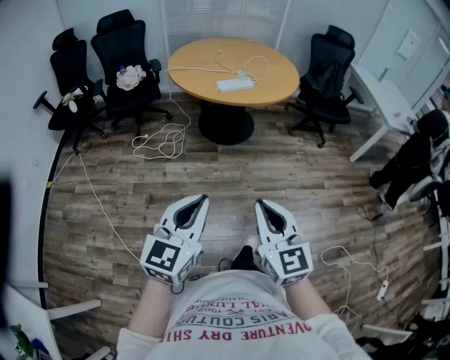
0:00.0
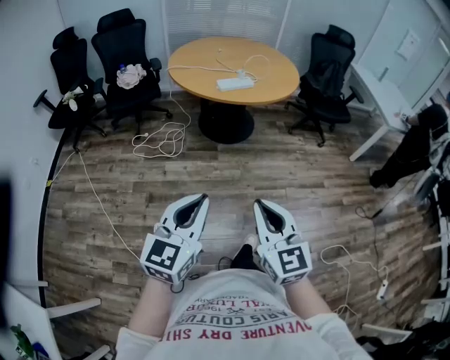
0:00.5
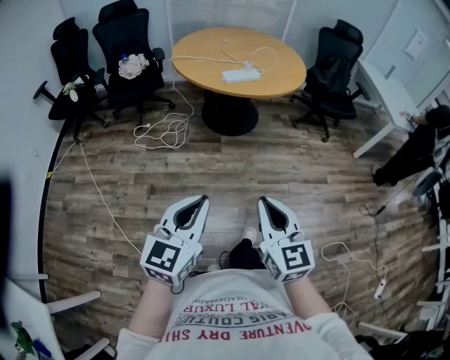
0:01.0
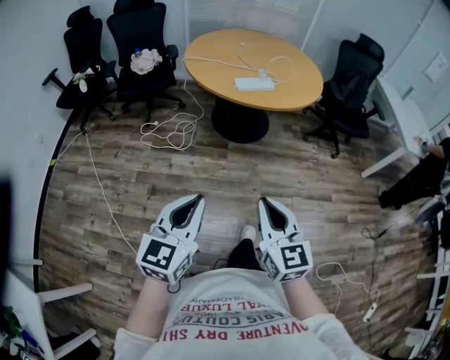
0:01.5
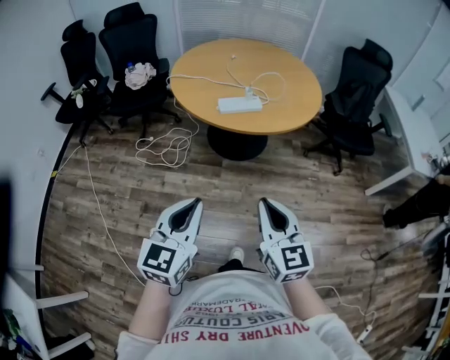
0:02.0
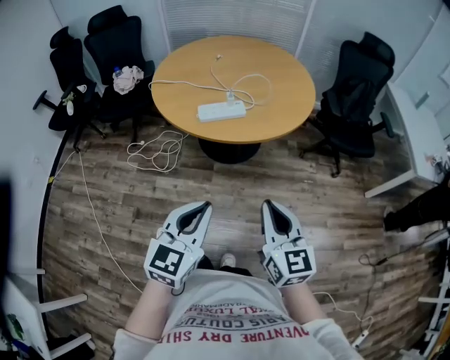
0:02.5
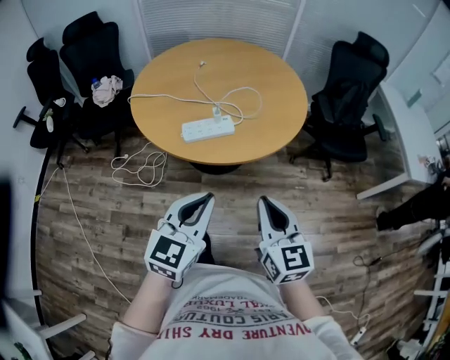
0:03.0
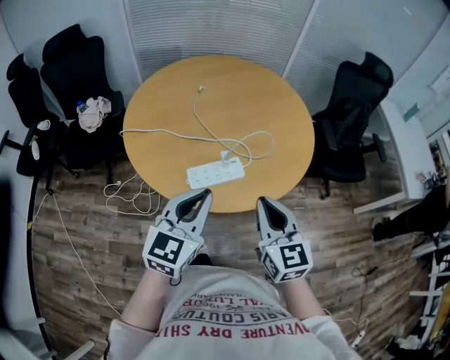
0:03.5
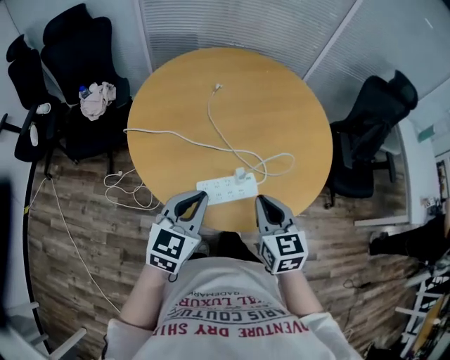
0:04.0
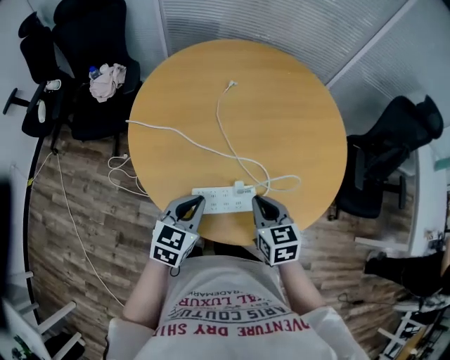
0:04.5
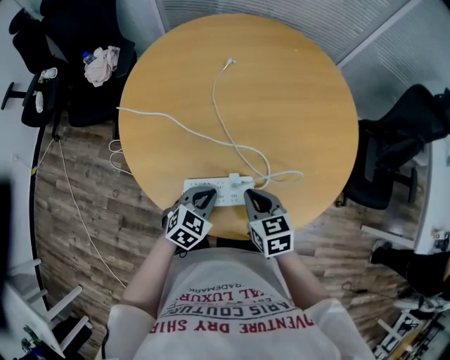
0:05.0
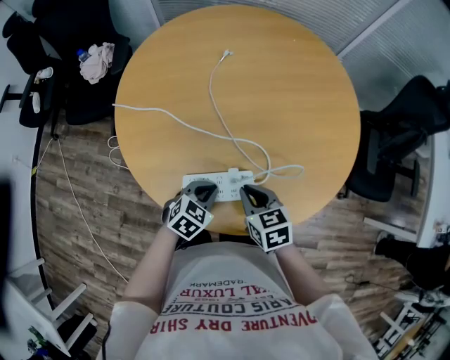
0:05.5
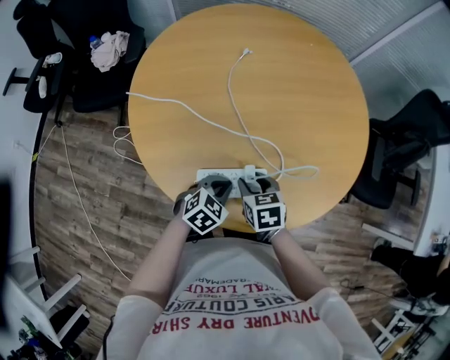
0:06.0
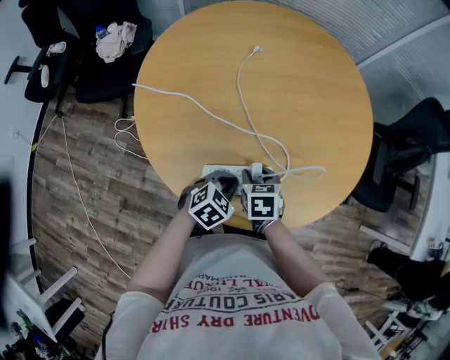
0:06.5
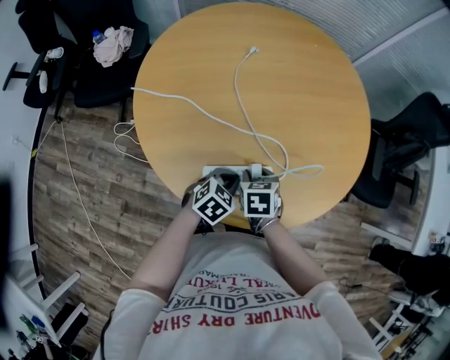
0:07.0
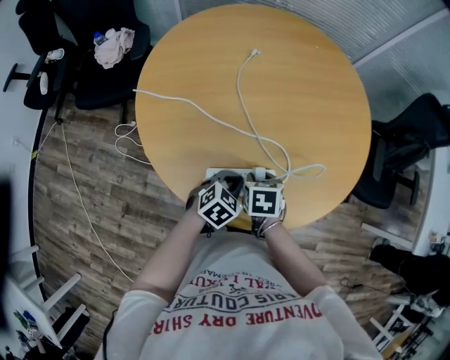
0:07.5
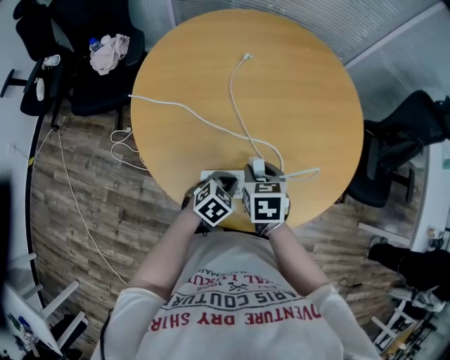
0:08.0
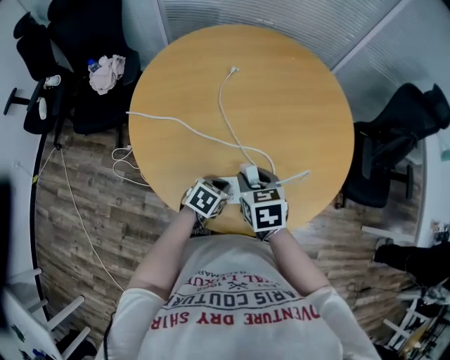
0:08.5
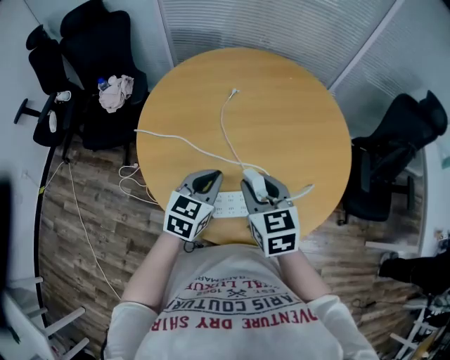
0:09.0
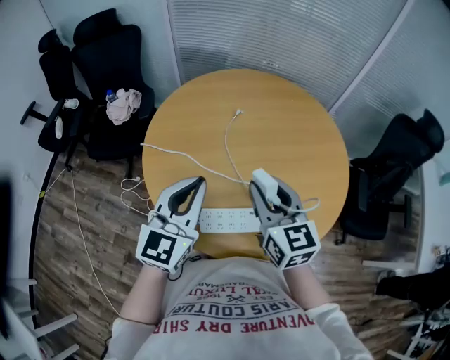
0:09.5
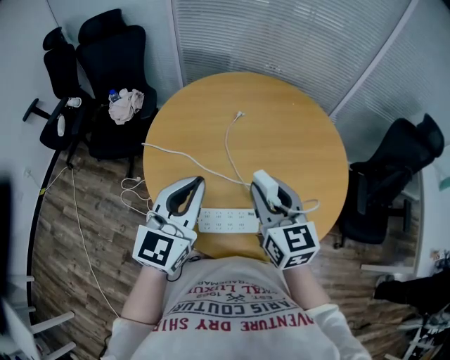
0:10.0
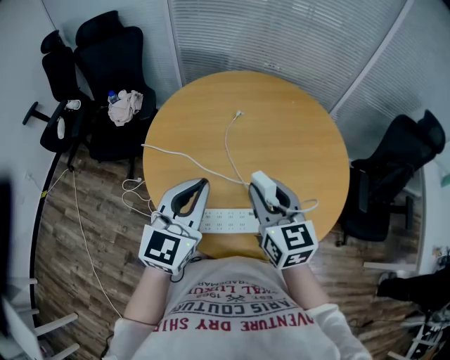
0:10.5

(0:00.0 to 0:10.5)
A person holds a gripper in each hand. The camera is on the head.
0:00.0 - 0:02.0: The two grippers go approximately 25 cm forward.
0:02.0 - 0:04.0: Both grippers are carried forward, approximately 50 cm.
0:04.0 - 0:06.5: The left gripper travels downward by approximately 25 cm, and tilts its fingers some 30 degrees downward, while the right gripper is displaced downward and forward by approximately 25 cm, tilts its fingers roughly 30 degrees downward, and opens.
0:06.5 - 0:08.5: The right gripper is displaced upward by some 10 cm.
0:08.5 - 0:10.5: The right gripper moves upward, about 20 cm, and angles its fingers upward, by about 30 degrees, while the left gripper shifts roughly 35 cm upward, and points its fingers about 50 degrees further upward.

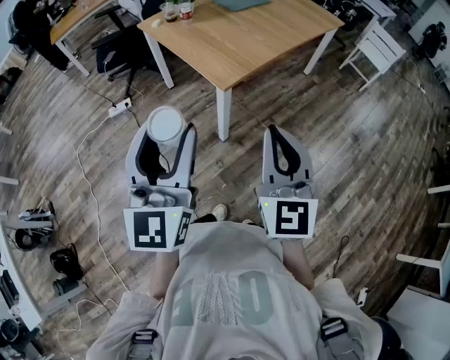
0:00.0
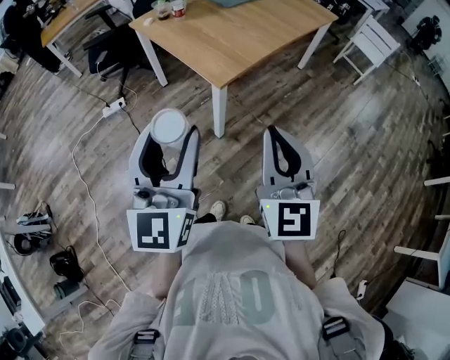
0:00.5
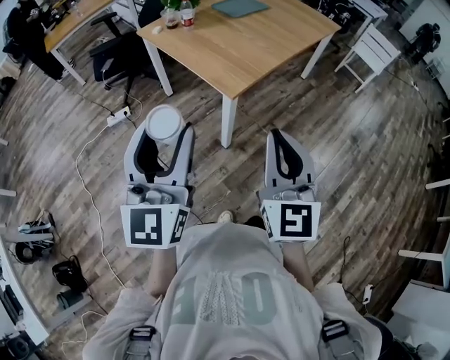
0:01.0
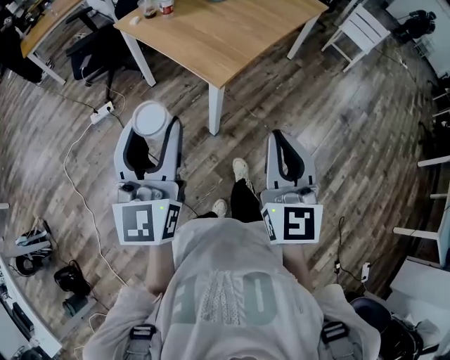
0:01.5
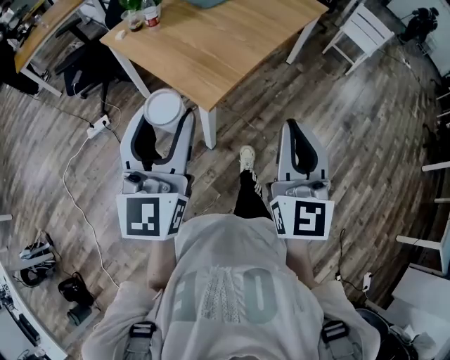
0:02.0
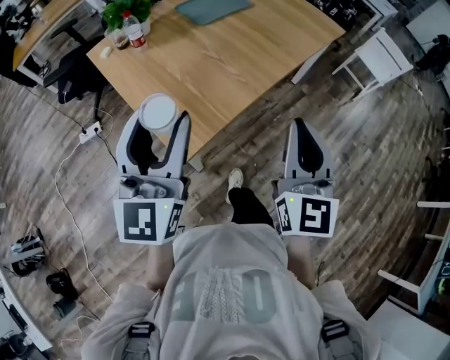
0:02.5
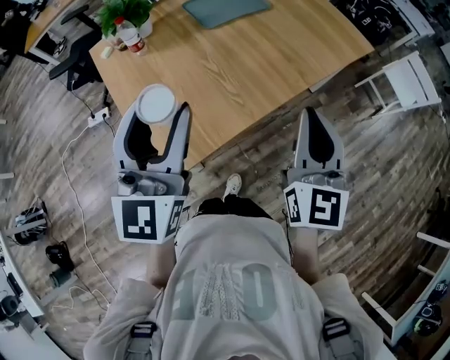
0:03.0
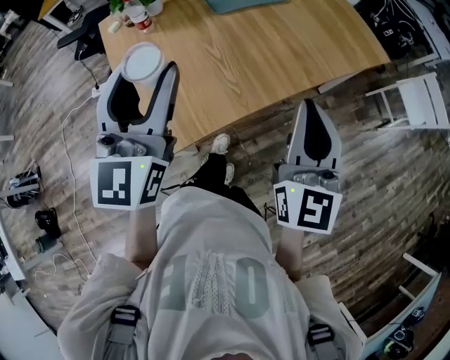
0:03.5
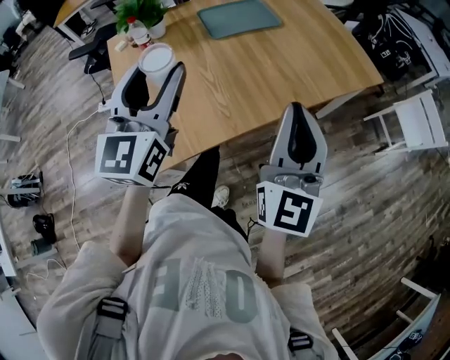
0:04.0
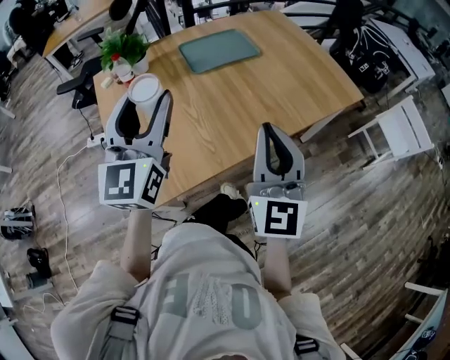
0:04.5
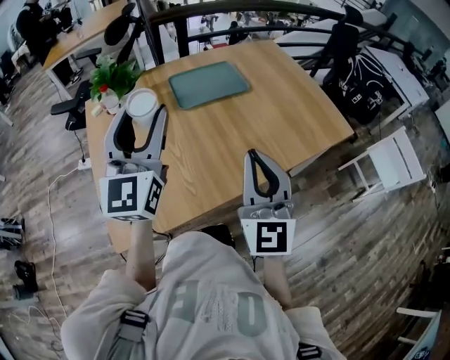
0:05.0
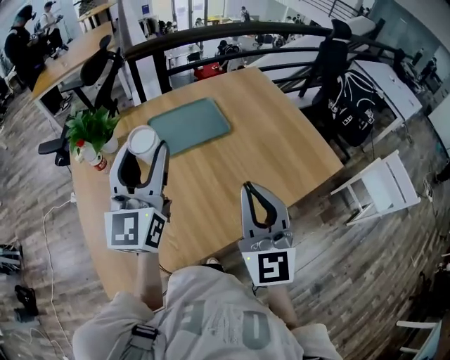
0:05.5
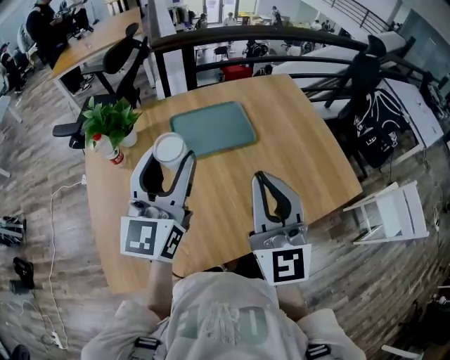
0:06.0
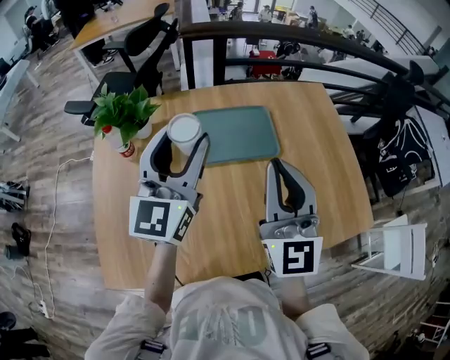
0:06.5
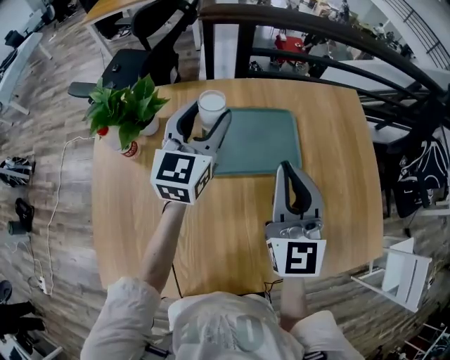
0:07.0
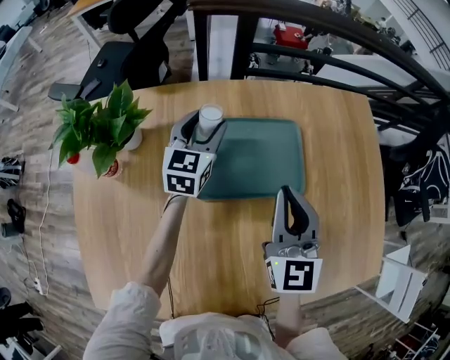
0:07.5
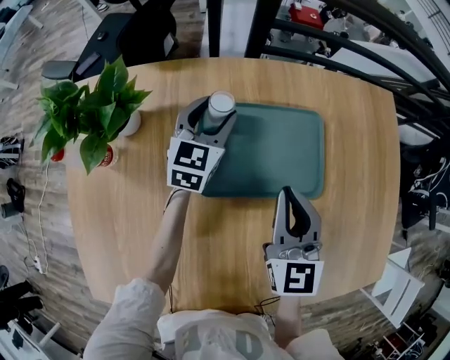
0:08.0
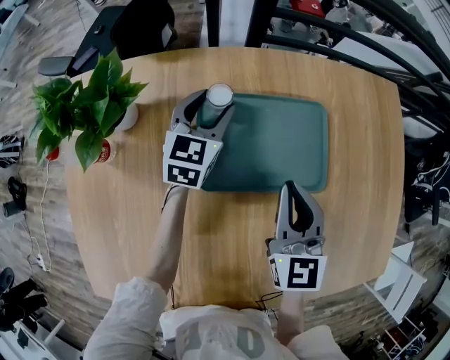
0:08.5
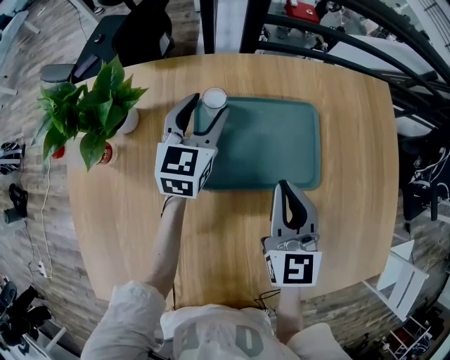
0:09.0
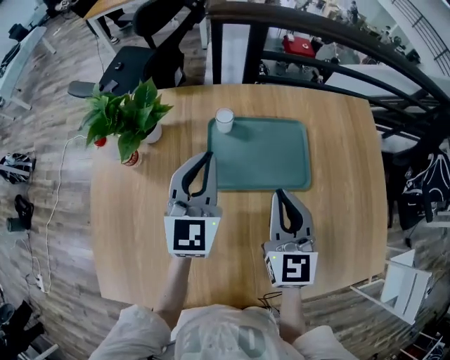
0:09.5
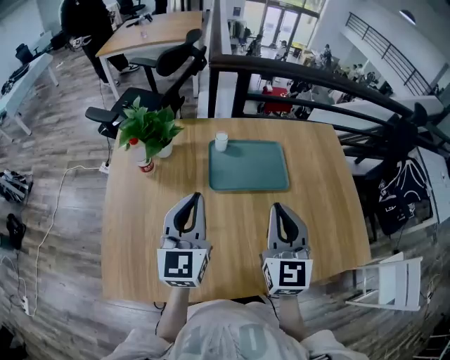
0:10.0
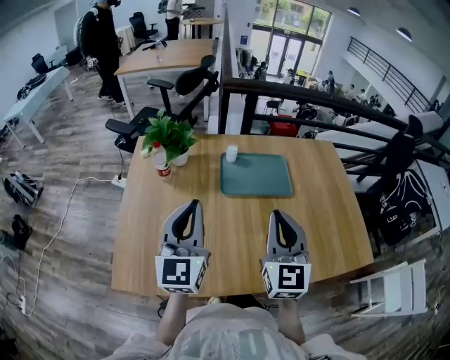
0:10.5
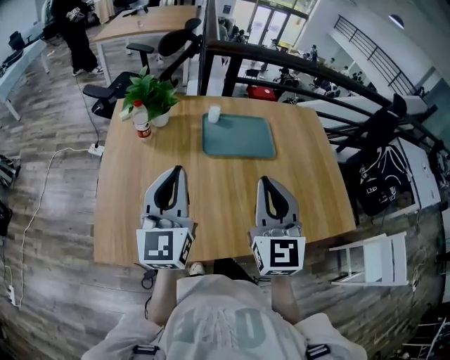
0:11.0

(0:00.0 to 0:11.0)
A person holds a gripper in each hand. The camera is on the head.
0:00.0 - 0:02.0: Both grippers move forward, approximately 15 cm.
0:02.0 - 0:03.5: The two grippers go approximately 40 cm forward and to the right. The left gripper swivels approximately 20 degrees.
0:03.5 - 0:05.5: The left gripper shifts about 25 cm forward and to the right. The right gripper goes approximately 20 cm forward.
0:05.5 - 0:07.5: Both grippers move forward and downward, some 40 cm. The left gripper points its fingers some 30 degrees further downward. Meanwhile the right gripper changes its angle by approximately 20 degrees.
0:07.5 - 0:09.0: The right gripper moves downward, approximately 5 cm.
0:09.0 - 0:11.0: The two grippers go roughly 40 cm backward and upward. The left gripper turns by some 30 degrees, and closes its fingers; the right gripper turns by roughly 20 degrees.

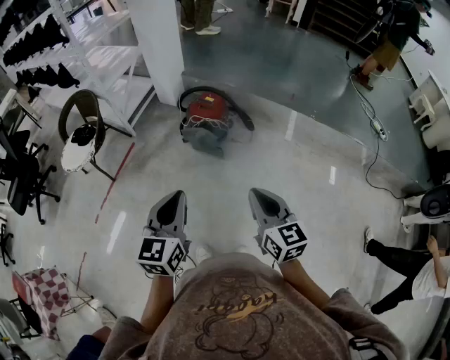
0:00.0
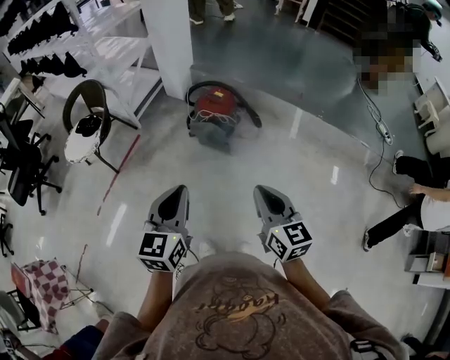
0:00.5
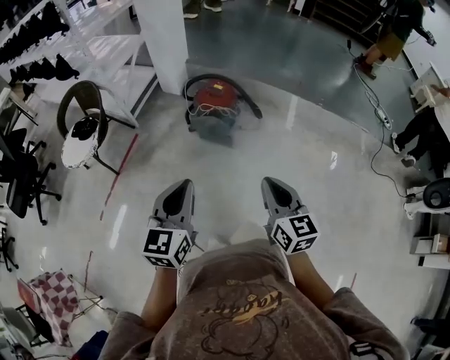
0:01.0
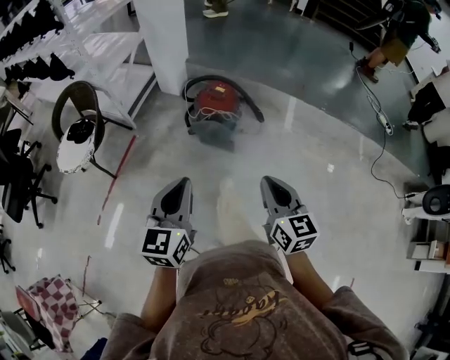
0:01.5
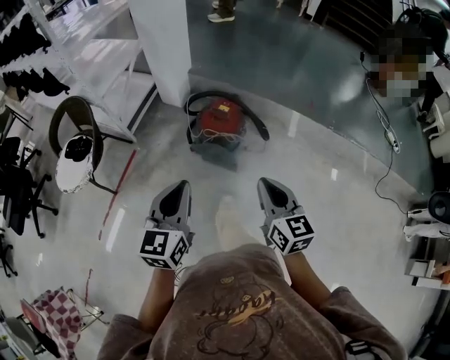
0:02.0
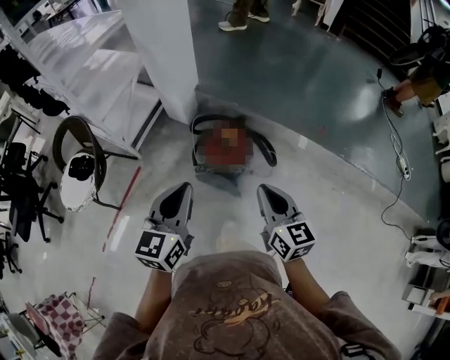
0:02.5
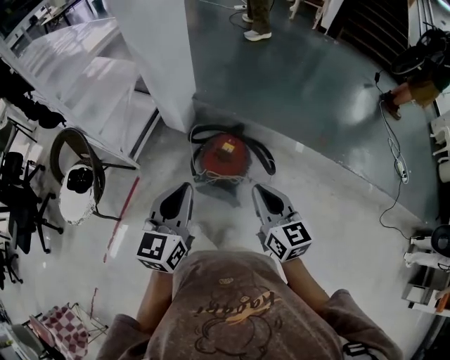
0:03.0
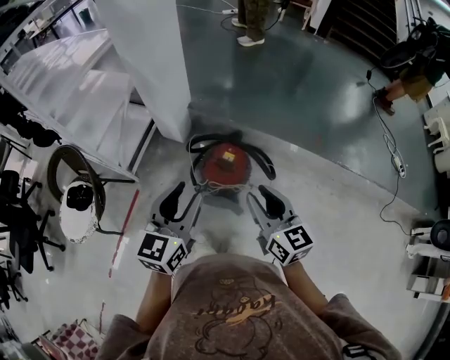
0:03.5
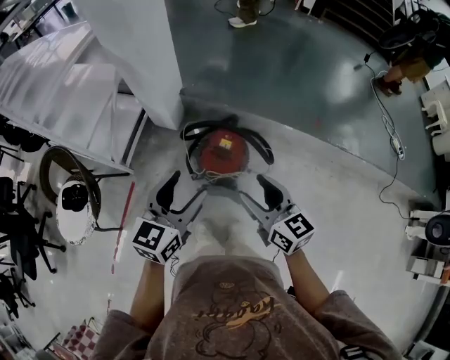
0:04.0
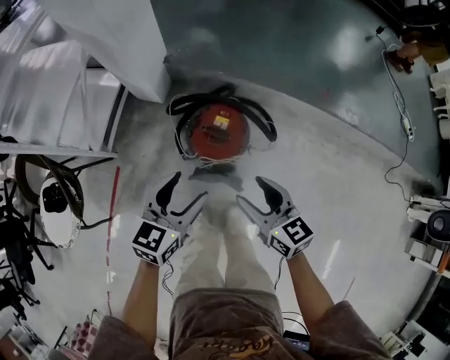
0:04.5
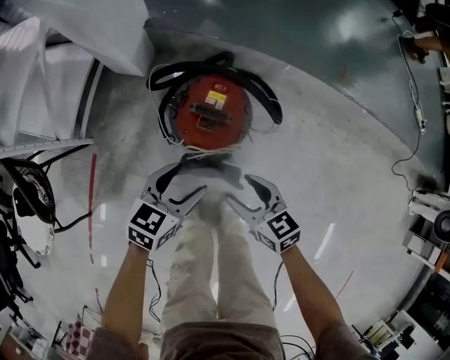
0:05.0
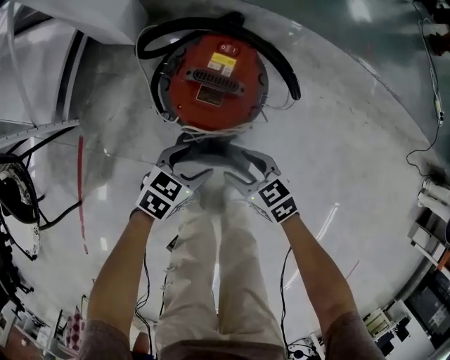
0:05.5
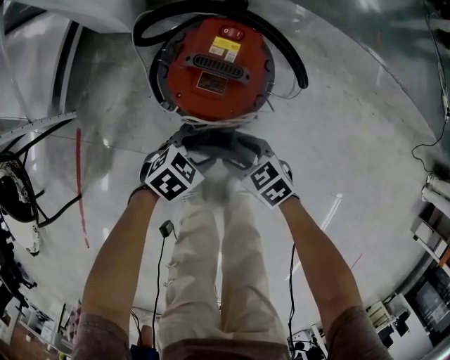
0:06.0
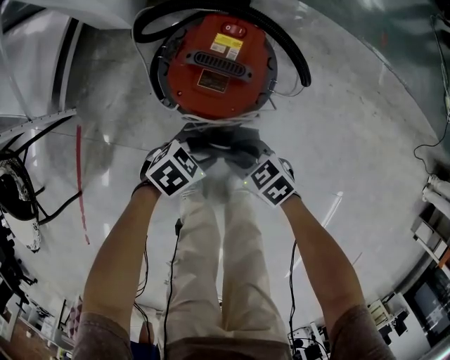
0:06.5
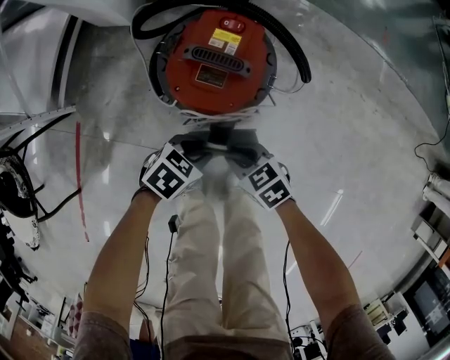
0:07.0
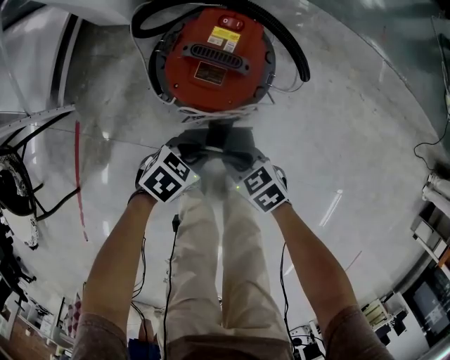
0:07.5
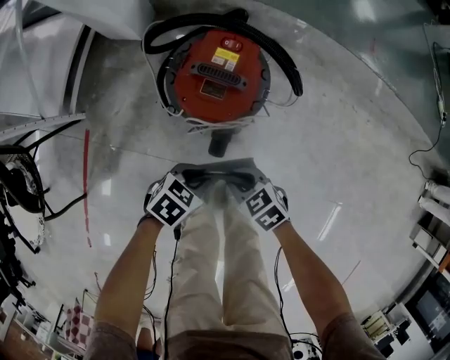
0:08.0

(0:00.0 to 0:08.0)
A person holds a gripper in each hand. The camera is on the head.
0:00.0 - 0:02.0: Both grippers move forward, roughly 20 cm.
0:02.0 - 0:04.0: Both grippers travel together forward, some 25 cm. The right gripper opens up. Meanwhile the left gripper opens its fingers.
0:04.0 - 0:06.0: The two grippers go roughly 60 cm downward. The right gripper tips its fingers downward by some 40 degrees, while the left gripper angles its fingers downward, by approximately 40 degrees.
0:06.0 - 0:08.0: The right gripper shifts by some 5 cm, and closes its fingers. The left gripper ends up approximately 10 cm from where it was, and closes.
